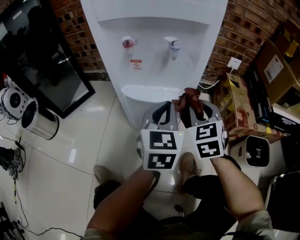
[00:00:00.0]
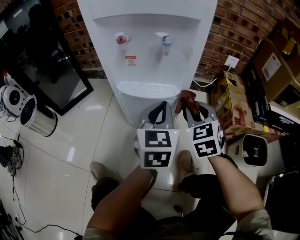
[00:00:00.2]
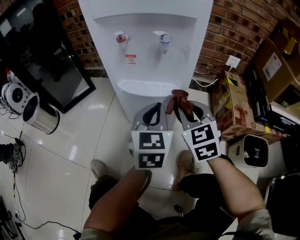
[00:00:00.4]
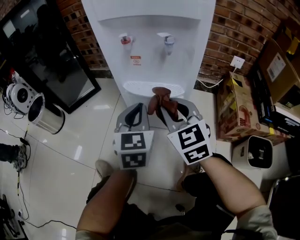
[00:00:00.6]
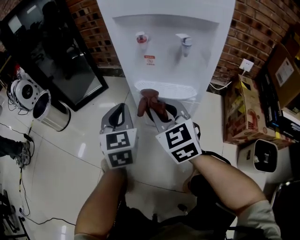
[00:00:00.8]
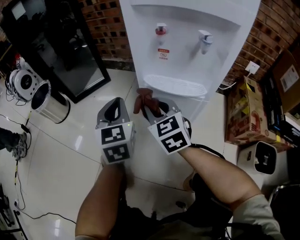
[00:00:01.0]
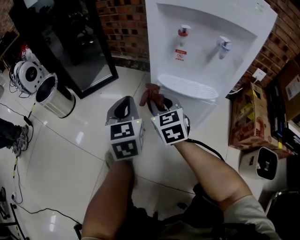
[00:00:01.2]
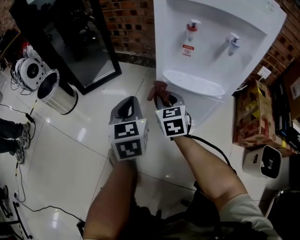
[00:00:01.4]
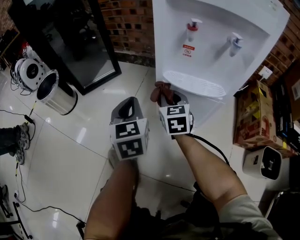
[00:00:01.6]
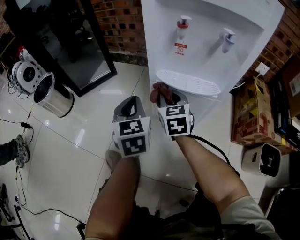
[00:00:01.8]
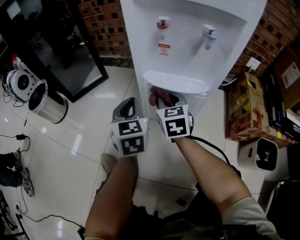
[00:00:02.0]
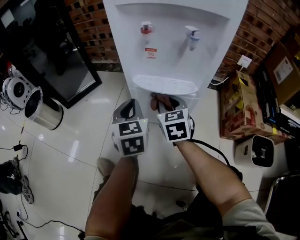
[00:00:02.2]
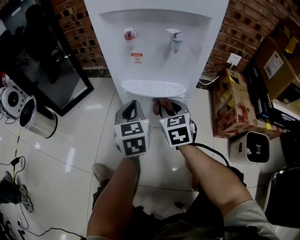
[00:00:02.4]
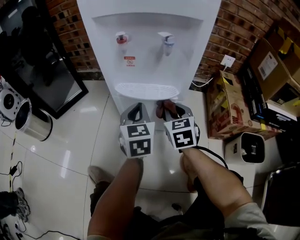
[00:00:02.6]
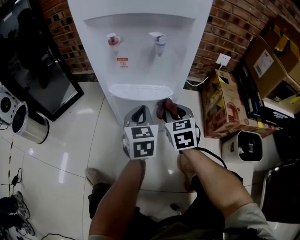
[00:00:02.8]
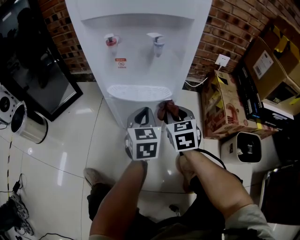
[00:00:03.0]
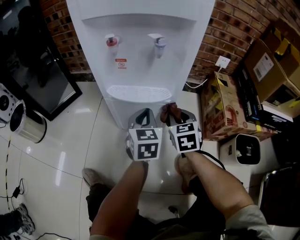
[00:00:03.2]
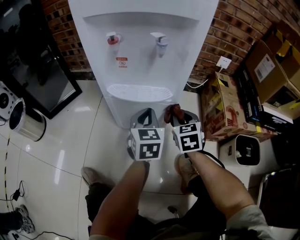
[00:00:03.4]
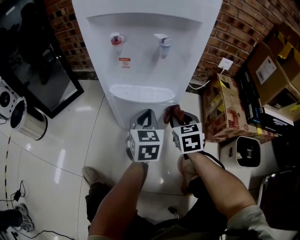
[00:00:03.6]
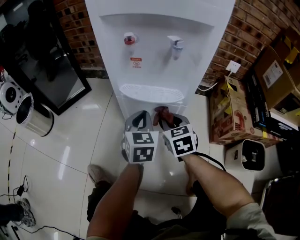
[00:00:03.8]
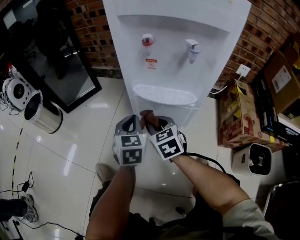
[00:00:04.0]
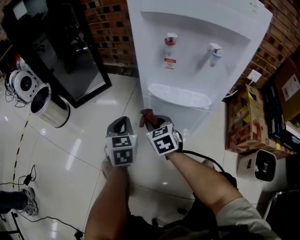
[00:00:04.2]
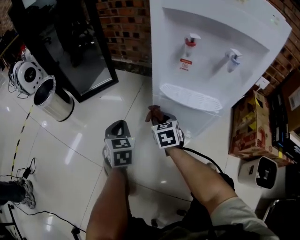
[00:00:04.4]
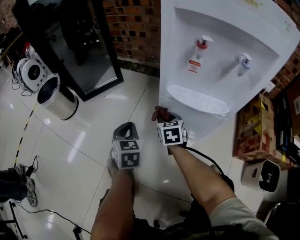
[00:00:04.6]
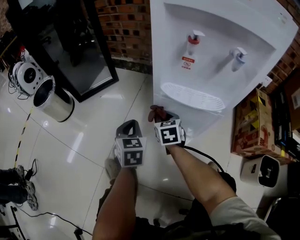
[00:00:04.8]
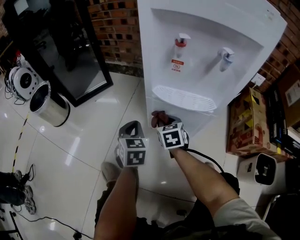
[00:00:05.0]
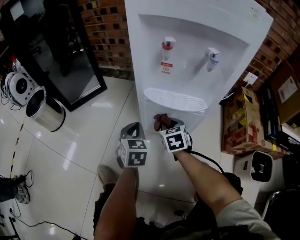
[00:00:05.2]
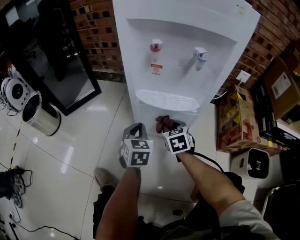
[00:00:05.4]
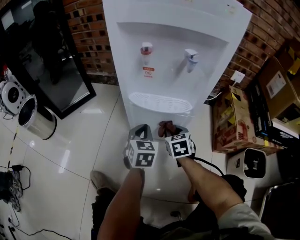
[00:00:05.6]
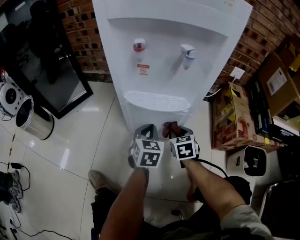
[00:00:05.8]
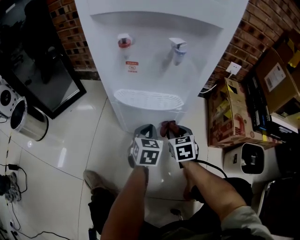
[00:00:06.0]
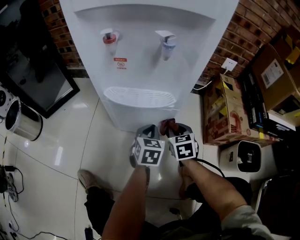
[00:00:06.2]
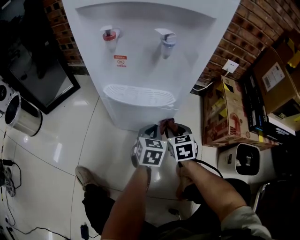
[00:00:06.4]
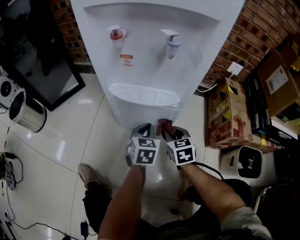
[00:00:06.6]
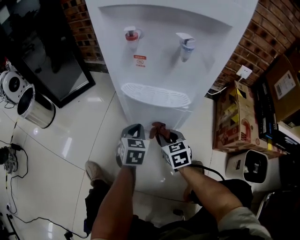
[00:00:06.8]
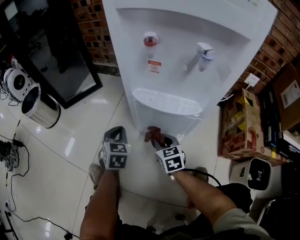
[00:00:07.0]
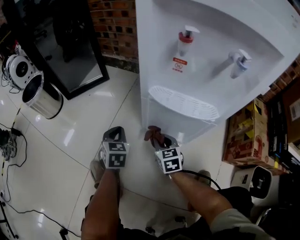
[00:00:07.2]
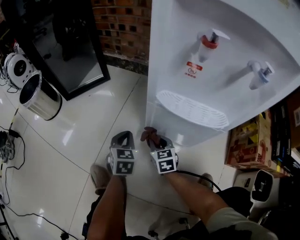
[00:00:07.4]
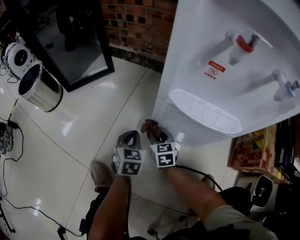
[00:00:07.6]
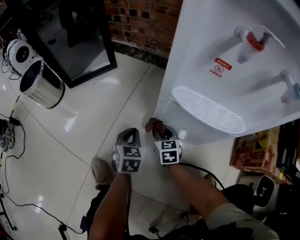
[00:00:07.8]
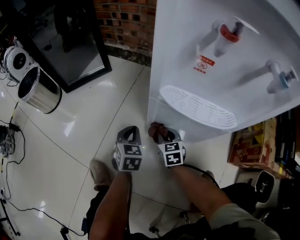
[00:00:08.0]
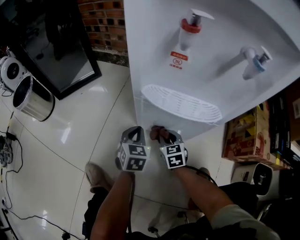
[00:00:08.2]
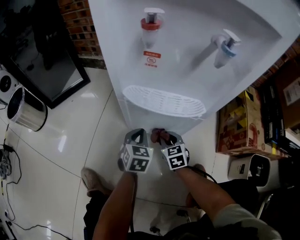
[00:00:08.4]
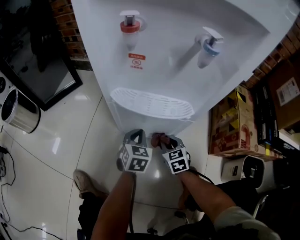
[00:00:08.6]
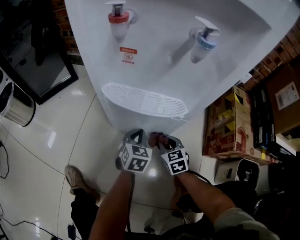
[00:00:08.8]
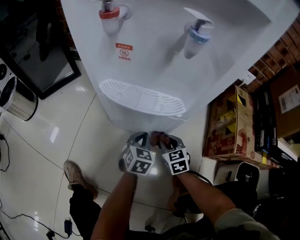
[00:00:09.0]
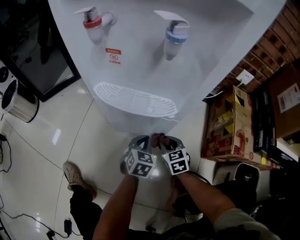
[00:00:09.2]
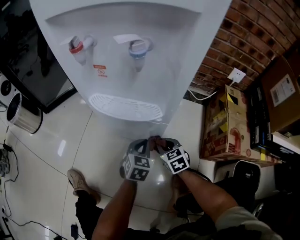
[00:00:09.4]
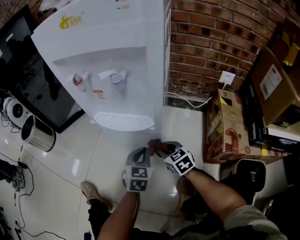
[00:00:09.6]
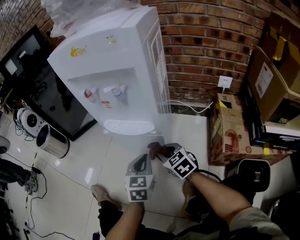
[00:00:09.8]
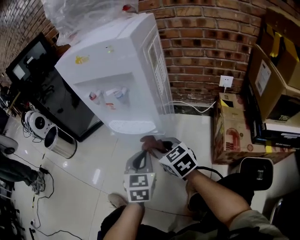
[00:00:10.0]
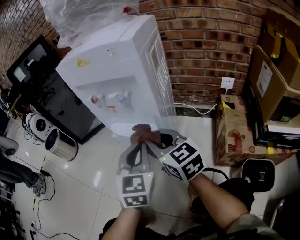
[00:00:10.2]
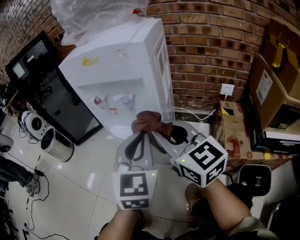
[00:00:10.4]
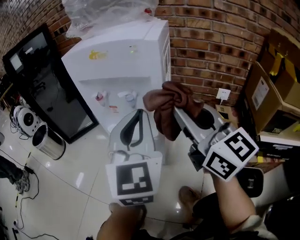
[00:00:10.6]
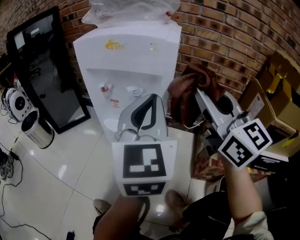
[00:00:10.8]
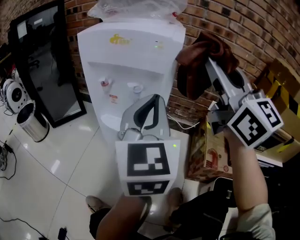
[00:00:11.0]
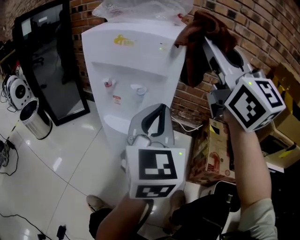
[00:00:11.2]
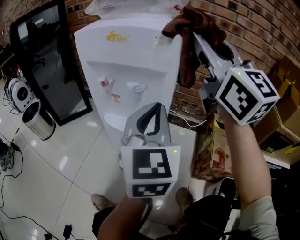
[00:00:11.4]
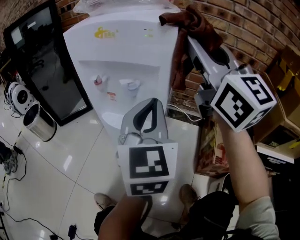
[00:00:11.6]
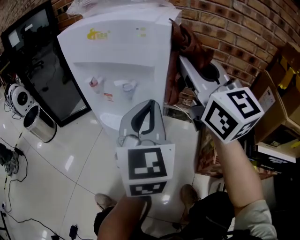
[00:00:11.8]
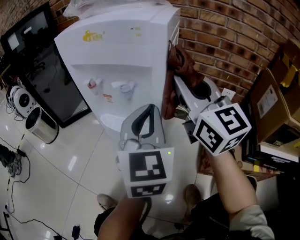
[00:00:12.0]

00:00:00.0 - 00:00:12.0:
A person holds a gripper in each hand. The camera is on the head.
00:00:00.0 - 00:00:01.6: The left gripper ends up roughly 25 cm from where it was, and rotates about 30 degrees, while the right gripper shifts by approximately 25 cm, and rotates some 20 degrees.
00:00:01.6 - 00:00:03.0: Both grippers move to the right, roughly 25 cm. The left gripper turns by some 20 degrees.
00:00:03.0 - 00:00:04.4: The left gripper ends up some 30 cm from where it was, and changes its angle by roughly 30 degrees; the right gripper changes place by some 25 cm.
00:00:04.4 - 00:00:06.0: The grippers both shift to the right by about 25 cm. The left gripper changes its angle by some 30 degrees.
00:00:06.0 - 00:00:07.6: The right gripper changes place by approximately 25 cm; the left gripper changes place by some 25 cm.
00:00:07.6 - 00:00:09.0: The two grippers go some 25 cm to the right.
00:00:09.0 - 00:00:10.4: The two grippers go some 40 cm upward. The right gripper angles its fingers upward, by some 40 degrees, while the left gripper tilts its fingers about 30 degrees upward.
00:00:10.4 - 00:00:12.0: The left gripper goes upward and returns, some 10 cm each way, while the right gripper moves forward and to the right, approximately 10 cm, and travels upward and back again, about 25 cm each way.

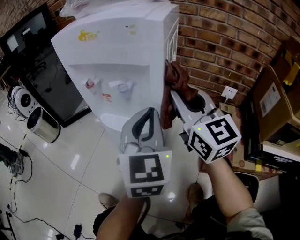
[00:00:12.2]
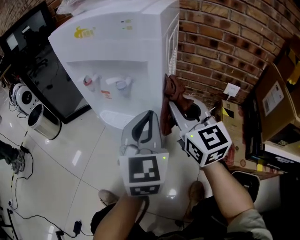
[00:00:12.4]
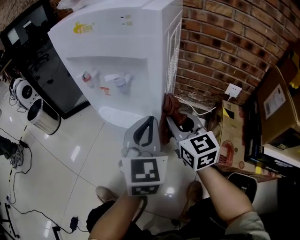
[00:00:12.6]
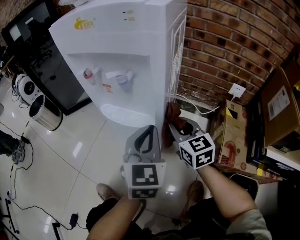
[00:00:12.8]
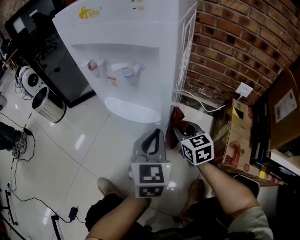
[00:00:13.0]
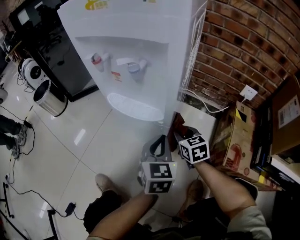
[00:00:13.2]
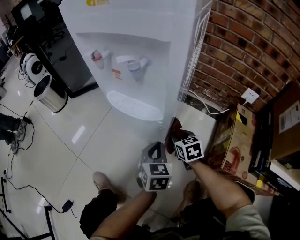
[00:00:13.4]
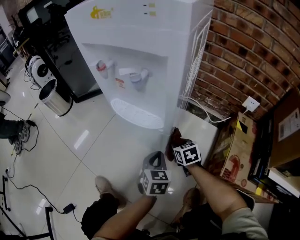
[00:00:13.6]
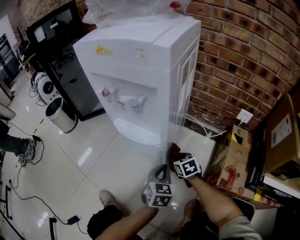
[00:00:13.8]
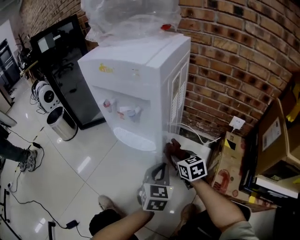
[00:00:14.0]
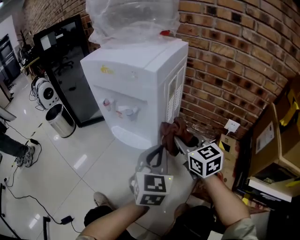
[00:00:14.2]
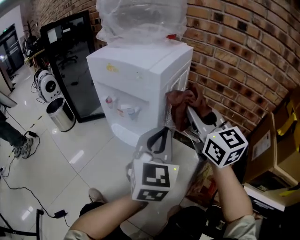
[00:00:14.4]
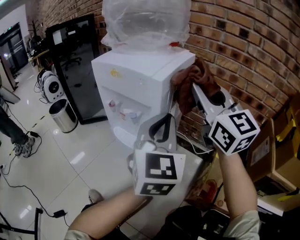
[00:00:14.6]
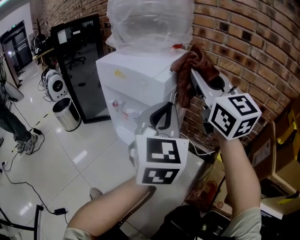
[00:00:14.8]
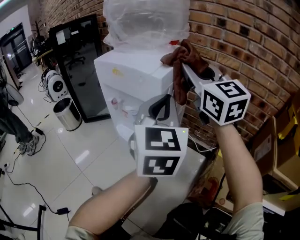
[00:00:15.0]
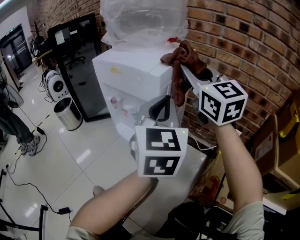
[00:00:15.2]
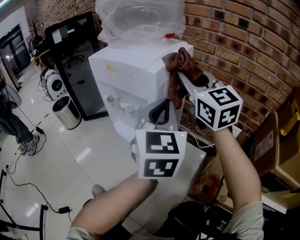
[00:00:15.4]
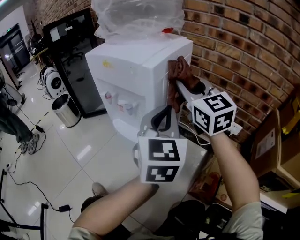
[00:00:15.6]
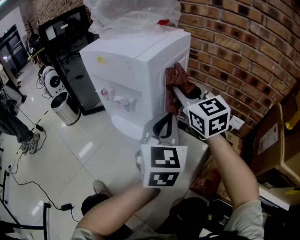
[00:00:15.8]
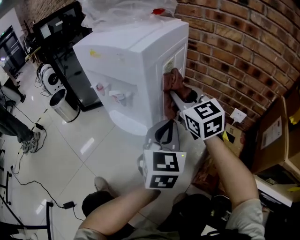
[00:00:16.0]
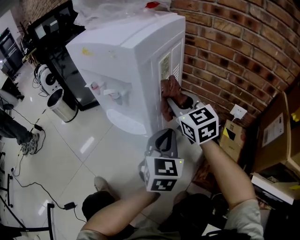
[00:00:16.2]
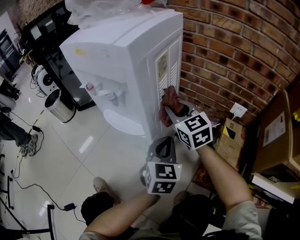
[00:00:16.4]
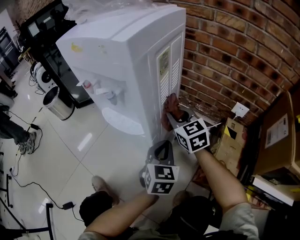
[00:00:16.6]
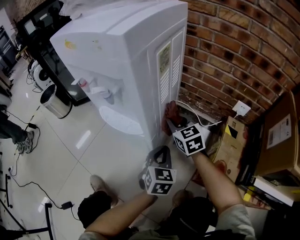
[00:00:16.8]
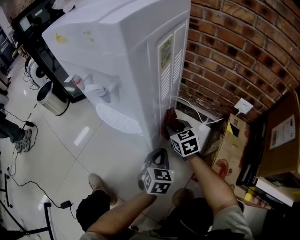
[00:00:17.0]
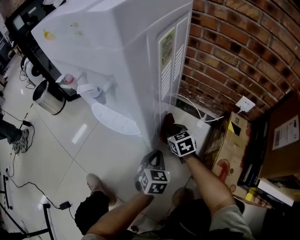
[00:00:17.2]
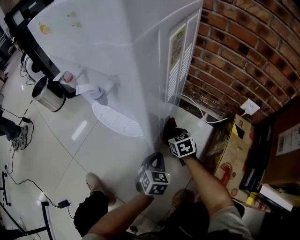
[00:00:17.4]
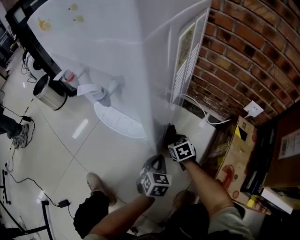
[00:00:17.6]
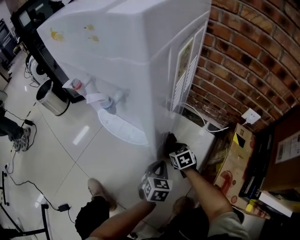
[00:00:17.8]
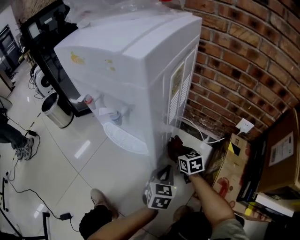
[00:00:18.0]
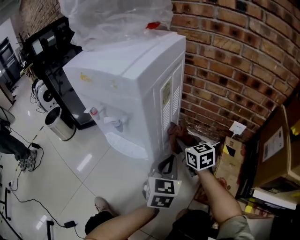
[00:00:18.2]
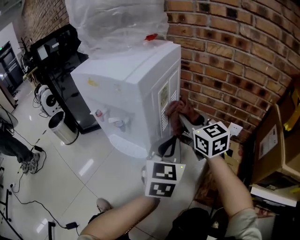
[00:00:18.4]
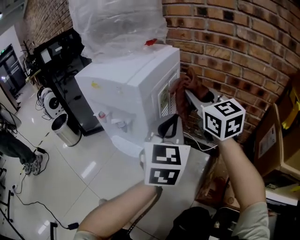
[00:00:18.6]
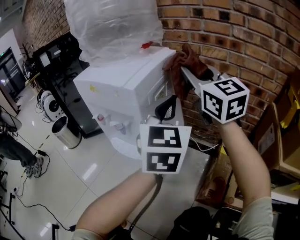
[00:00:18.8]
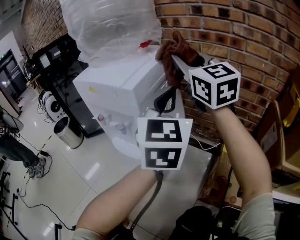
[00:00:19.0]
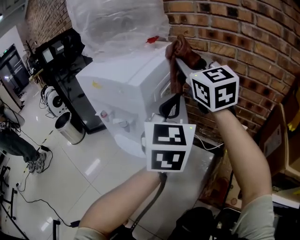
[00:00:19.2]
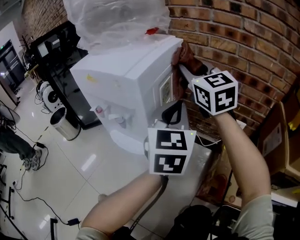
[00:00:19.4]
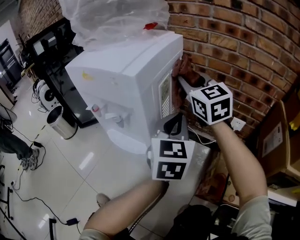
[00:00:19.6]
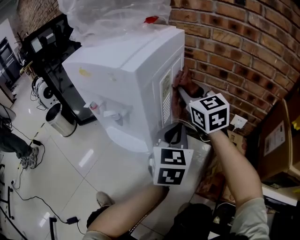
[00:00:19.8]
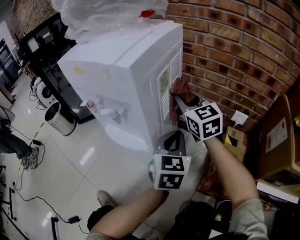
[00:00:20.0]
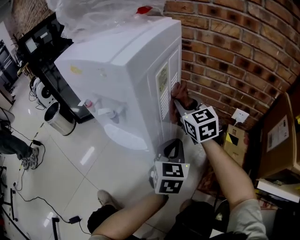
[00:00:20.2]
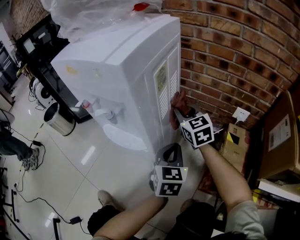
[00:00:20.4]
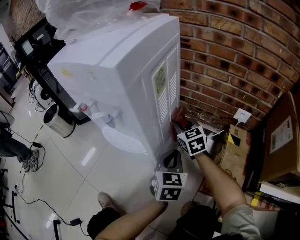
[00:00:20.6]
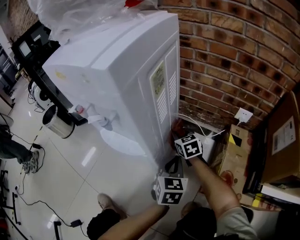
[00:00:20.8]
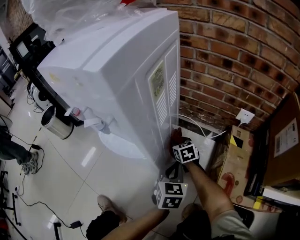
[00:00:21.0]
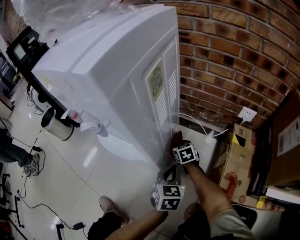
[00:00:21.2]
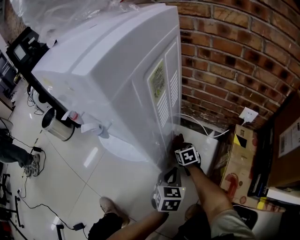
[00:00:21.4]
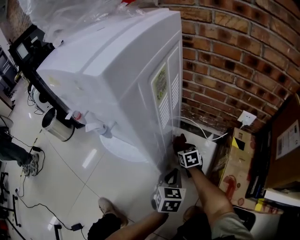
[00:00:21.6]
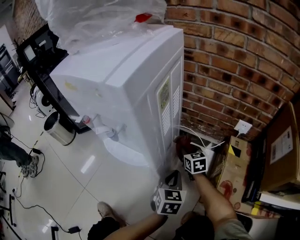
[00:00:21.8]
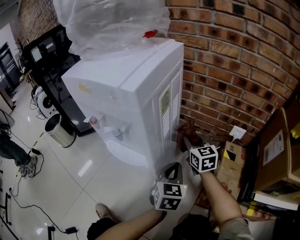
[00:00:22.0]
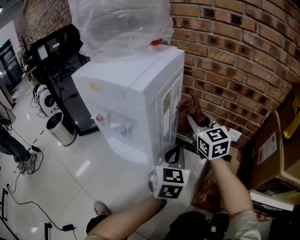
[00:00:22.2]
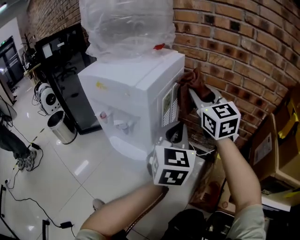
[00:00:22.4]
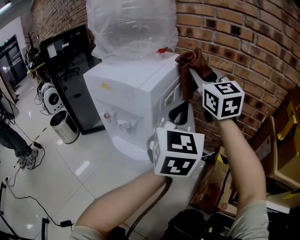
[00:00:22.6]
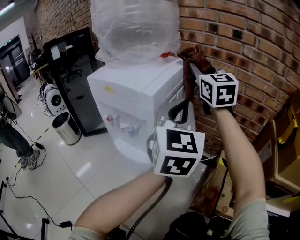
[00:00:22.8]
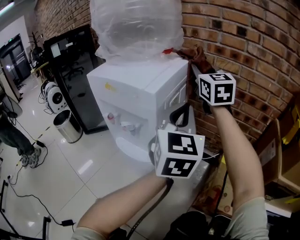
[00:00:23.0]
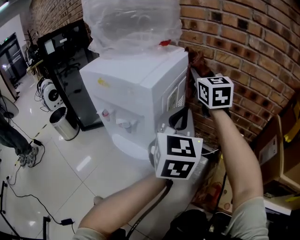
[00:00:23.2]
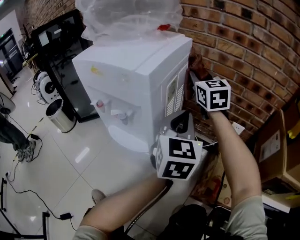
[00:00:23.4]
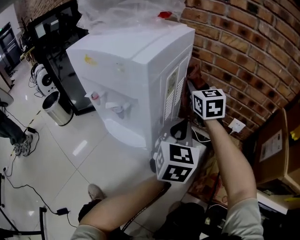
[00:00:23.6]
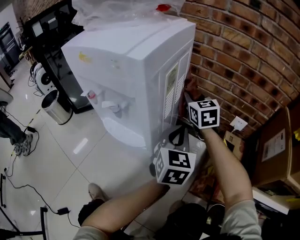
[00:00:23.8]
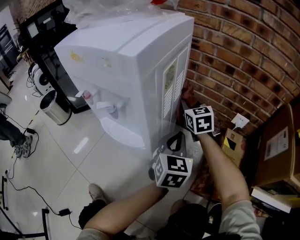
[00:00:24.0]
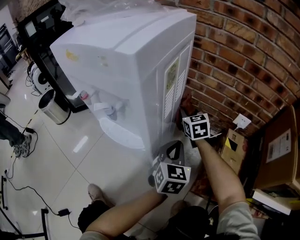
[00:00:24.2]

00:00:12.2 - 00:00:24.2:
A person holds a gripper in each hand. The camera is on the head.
00:00:12.2 - 00:00:13.8: The two grippers go some 35 cm downward. The right gripper tilts its fingers some 50 degrees downward. Meanwhile the left gripper rotates some 30 degrees.
00:00:13.8 - 00:00:15.2: The grippers both shift upward by approximately 50 cm. The left gripper points its fingers some 30 degrees further upward; the right gripper tilts its fingers about 60 degrees upward.
00:00:15.2 - 00:00:16.6: Both grippers travel together downward, some 35 cm. The left gripper changes its angle by about 30 degrees. Meanwhile the right gripper turns by some 30 degrees.
00:00:16.6 - 00:00:18.2: The left gripper travels downward and back again, roughly 20 cm each way. The right gripper reaches about 30 cm downward, then returns.
00:00:18.2 - 00:00:19.8: The left gripper travels upward and back again, about 30 cm each way. The right gripper goes some 20 cm upward, and turns by about 20 degrees.
00:00:19.8 - 00:00:21.2: The left gripper shifts approximately 25 cm downward; the right gripper shifts some 40 cm downward, and tips its fingers downward by about 40 degrees.
00:00:21.2 - 00:00:22.6: The two grippers go about 50 cm upward. The right gripper tilts its fingers some 50 degrees upward. The left gripper points its fingers approximately 40 degrees further upward.
00:00:22.6 - 00:00:24.2: The grippers both shift downward by approximately 35 cm. The left gripper rotates some 30 degrees; the right gripper tips its fingers downward by about 30 degrees.
